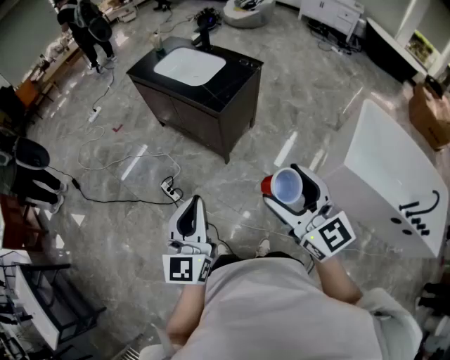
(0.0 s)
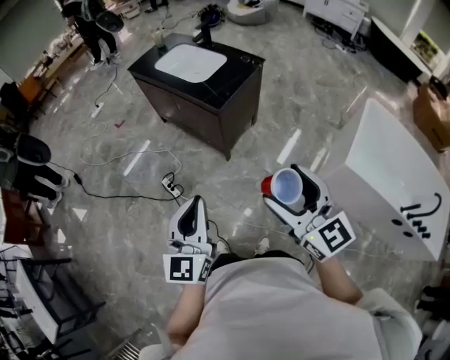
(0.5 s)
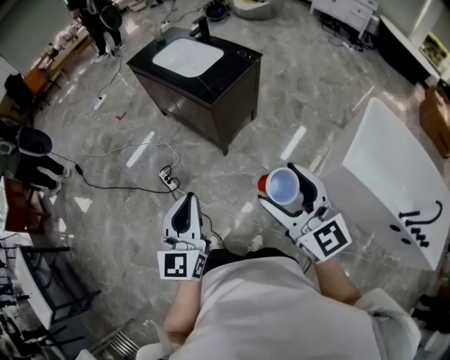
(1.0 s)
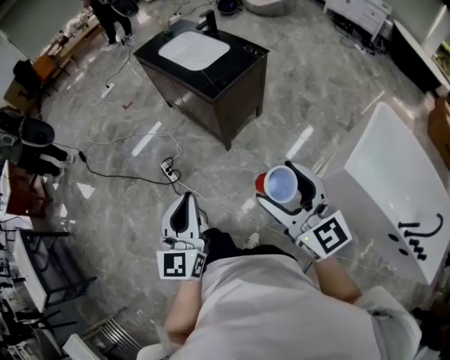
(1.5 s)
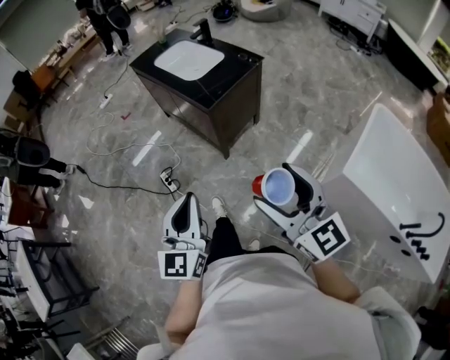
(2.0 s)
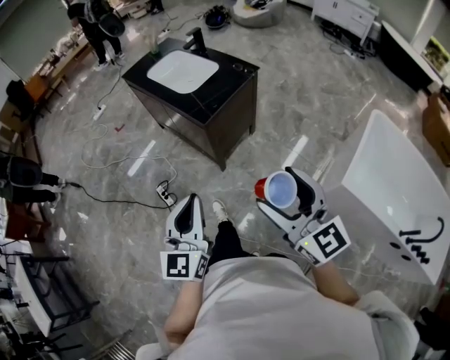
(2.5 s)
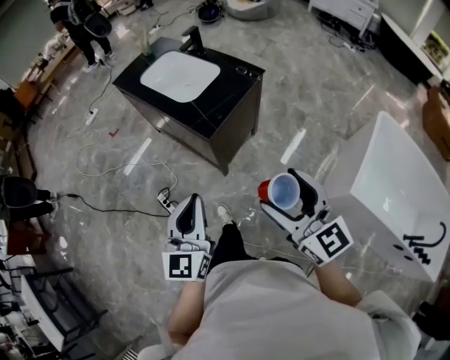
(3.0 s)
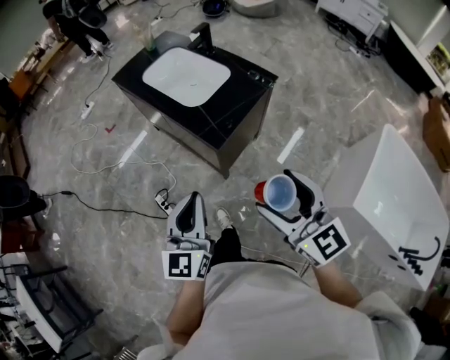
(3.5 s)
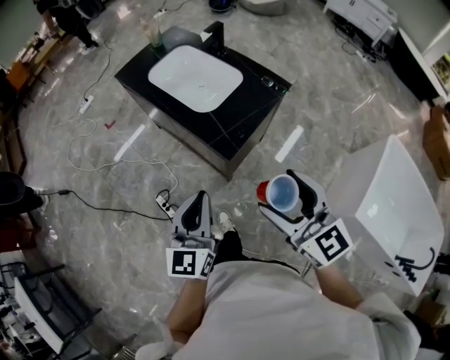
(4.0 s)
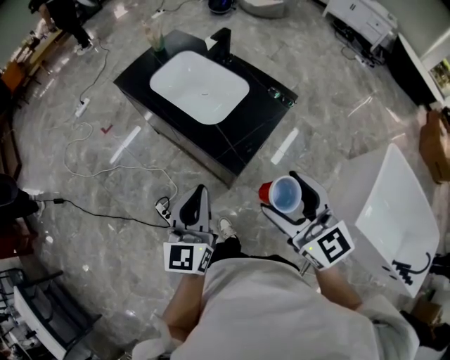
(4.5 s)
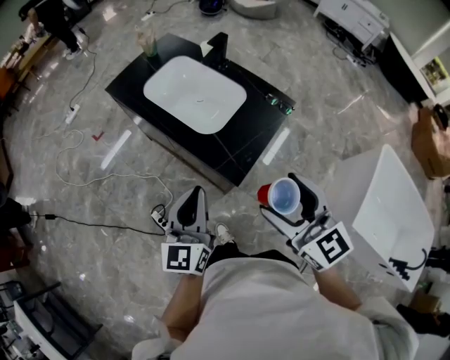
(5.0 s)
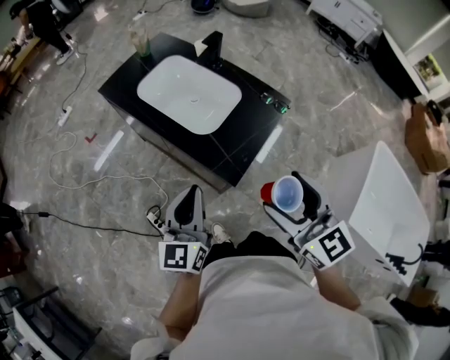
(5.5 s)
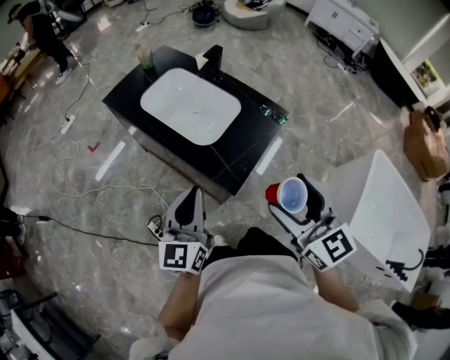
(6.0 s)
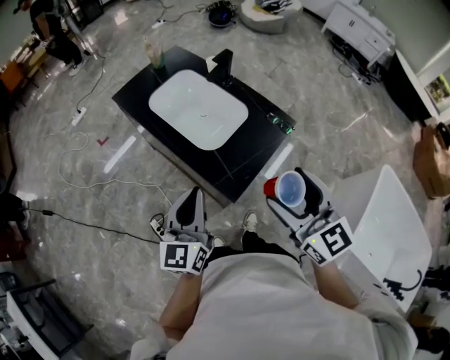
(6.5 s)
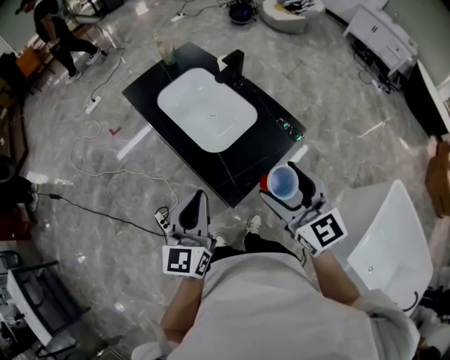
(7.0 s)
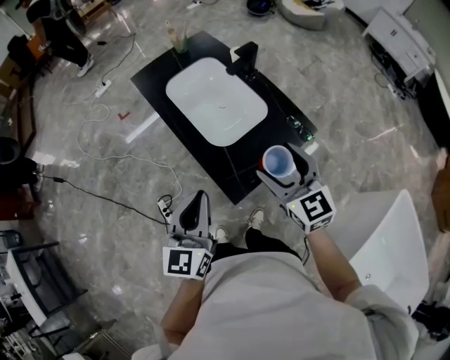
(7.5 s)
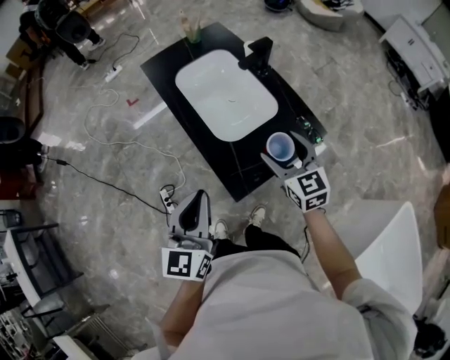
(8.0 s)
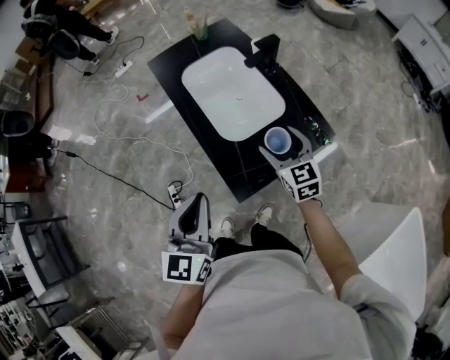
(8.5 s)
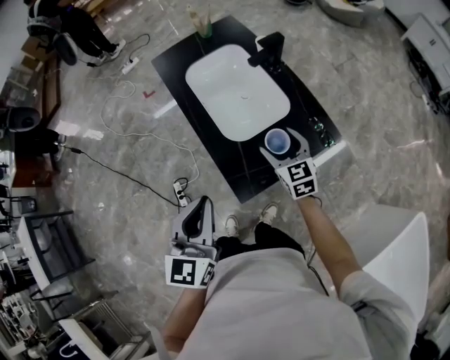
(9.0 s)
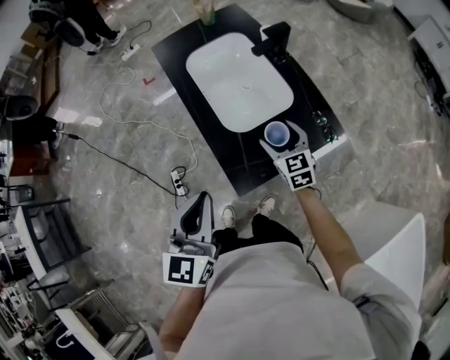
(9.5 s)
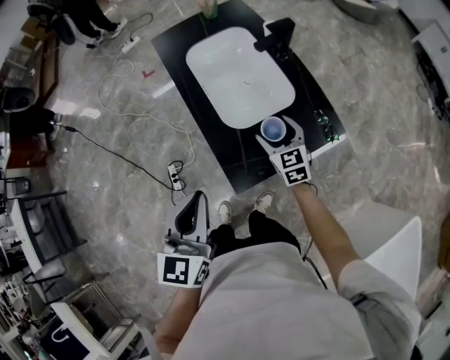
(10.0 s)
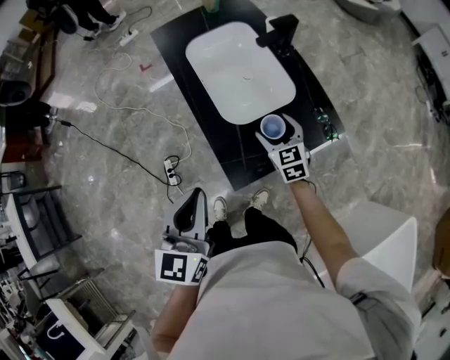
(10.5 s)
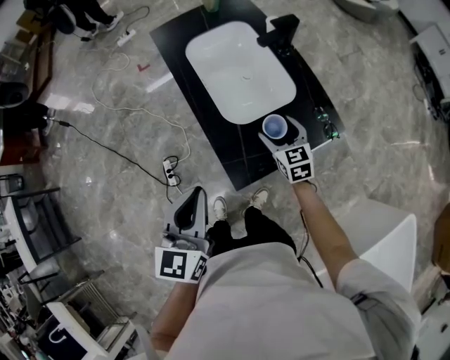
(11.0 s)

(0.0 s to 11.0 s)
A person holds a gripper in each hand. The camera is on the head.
0.0 s - 2.0 s: The grippers both shift to the right by approximately 10 cm.
2.0 s - 3.5 s: The two grippers go approximately 25 cm forward.
3.5 s - 5.5 s: The grippers both shift forward by about 20 cm.
5.5 s - 7.5 s: The right gripper is displaced forward by some 15 cm. The left gripper changes place by roughly 5 cm.
7.5 s - 9.0 s: The right gripper shifts about 20 cm downward and forward.
9.0 s - 11.0 s: The right gripper shifts some 5 cm downward.

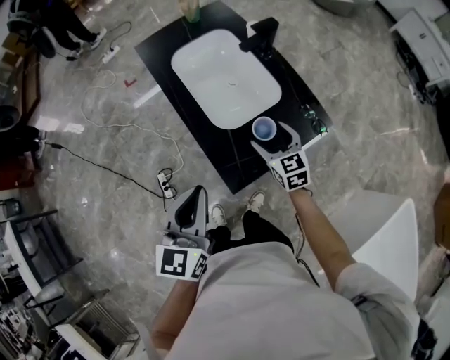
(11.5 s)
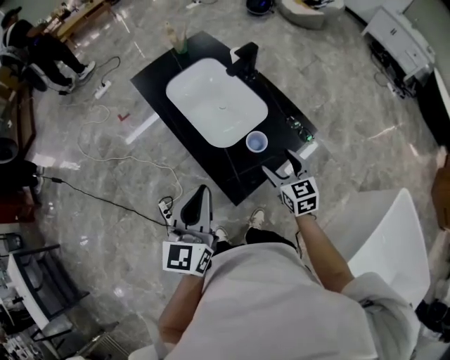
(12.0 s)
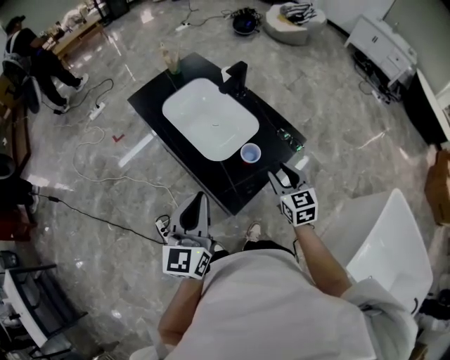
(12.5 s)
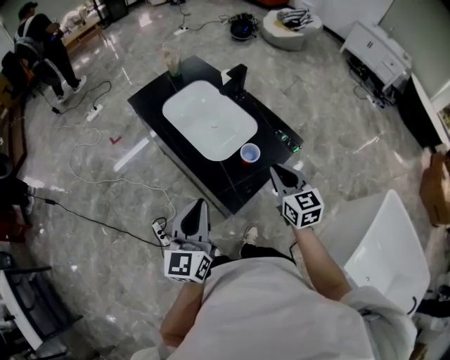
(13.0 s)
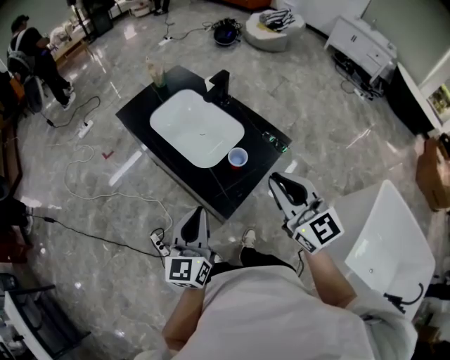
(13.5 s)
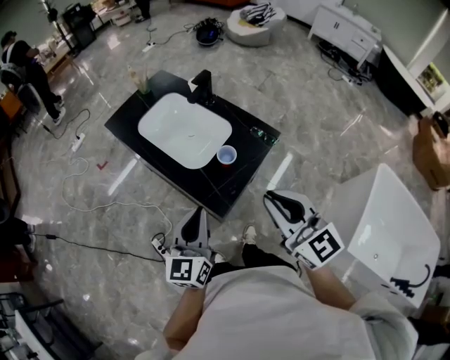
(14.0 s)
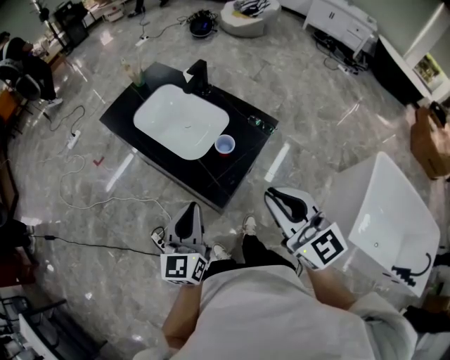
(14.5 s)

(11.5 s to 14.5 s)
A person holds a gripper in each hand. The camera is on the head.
11.5 s - 13.0 s: The right gripper travels upward and backward by roughly 15 cm, and closes.
13.0 s - 14.5 s: The right gripper moves upward and backward, roughly 20 cm.

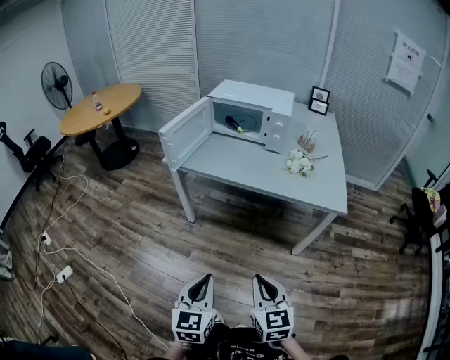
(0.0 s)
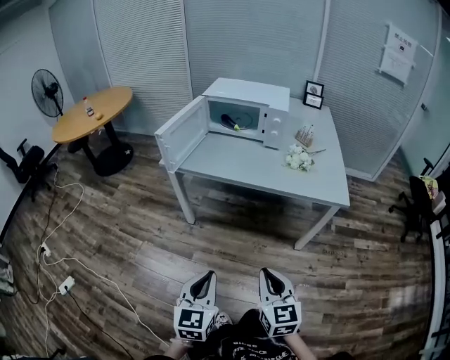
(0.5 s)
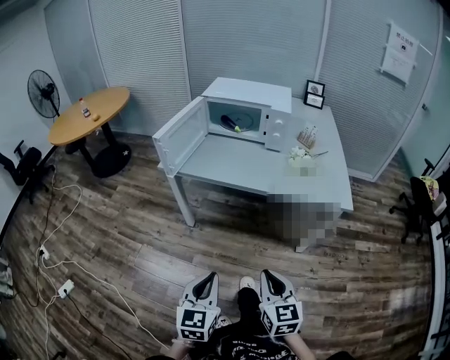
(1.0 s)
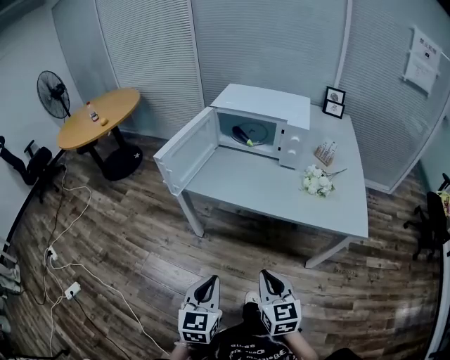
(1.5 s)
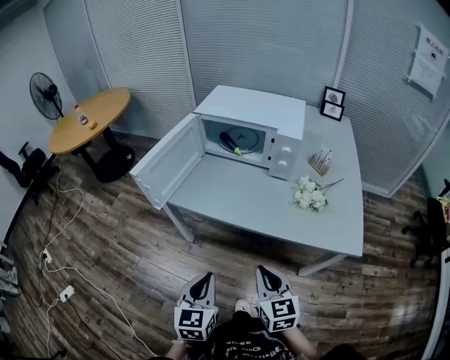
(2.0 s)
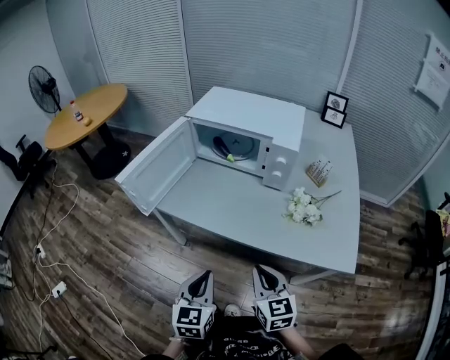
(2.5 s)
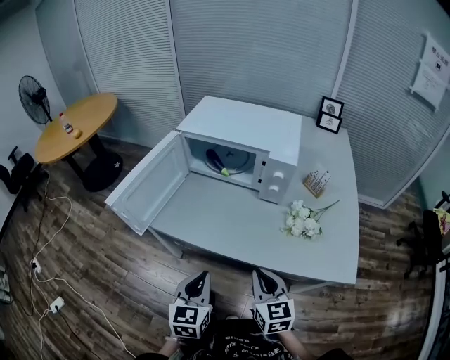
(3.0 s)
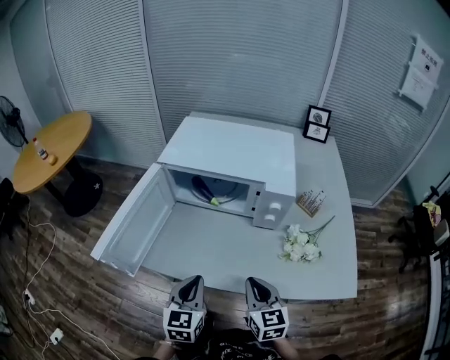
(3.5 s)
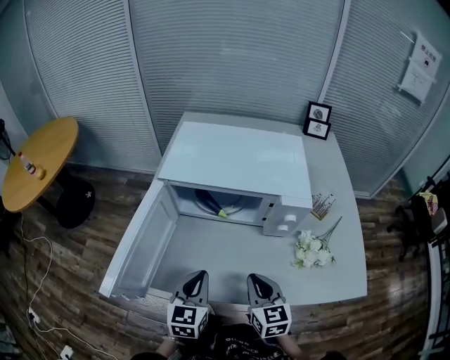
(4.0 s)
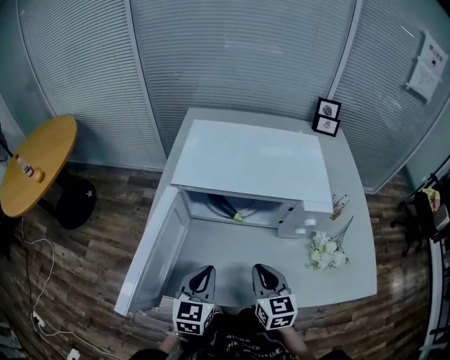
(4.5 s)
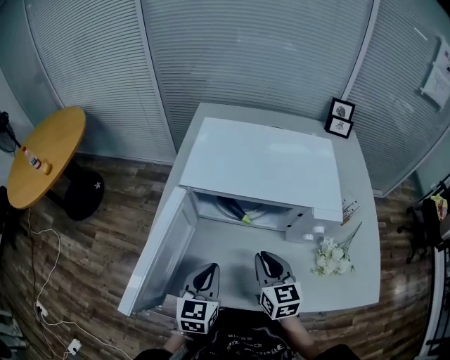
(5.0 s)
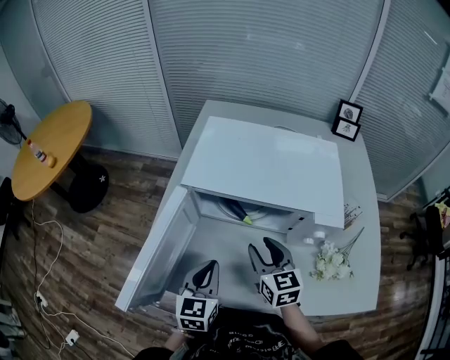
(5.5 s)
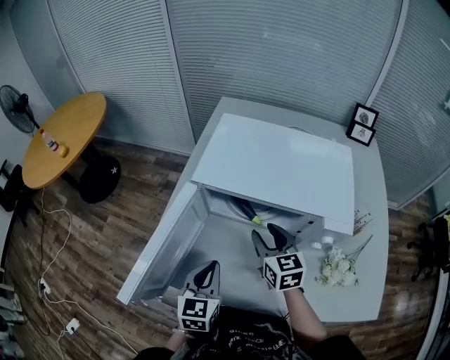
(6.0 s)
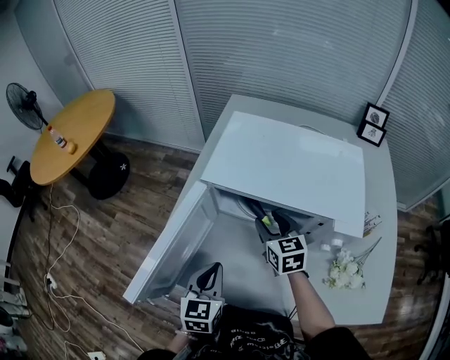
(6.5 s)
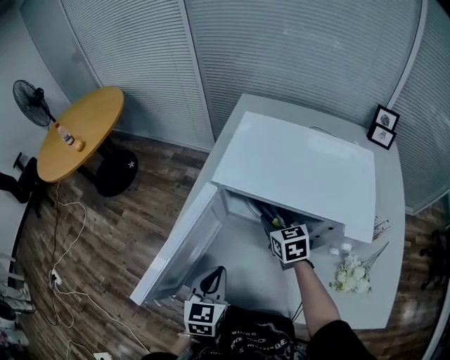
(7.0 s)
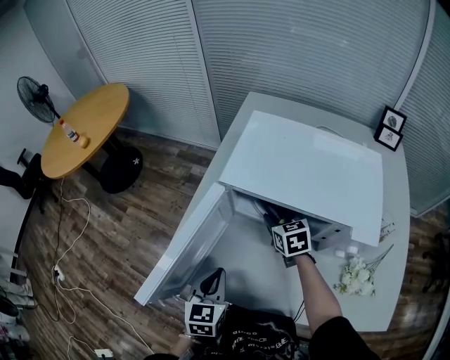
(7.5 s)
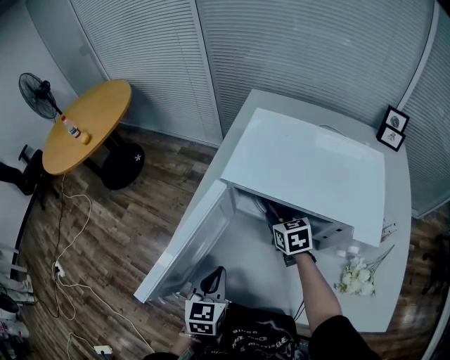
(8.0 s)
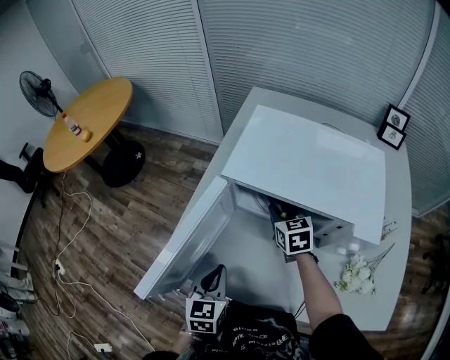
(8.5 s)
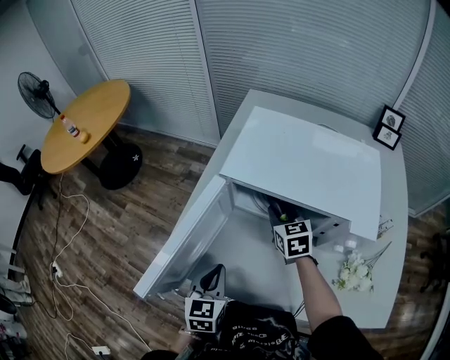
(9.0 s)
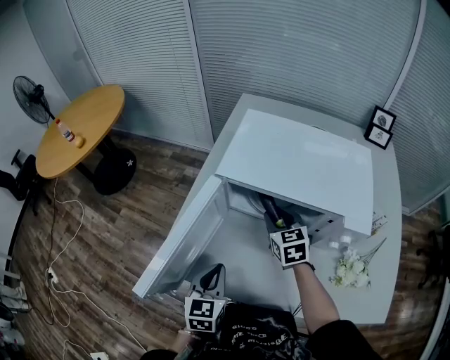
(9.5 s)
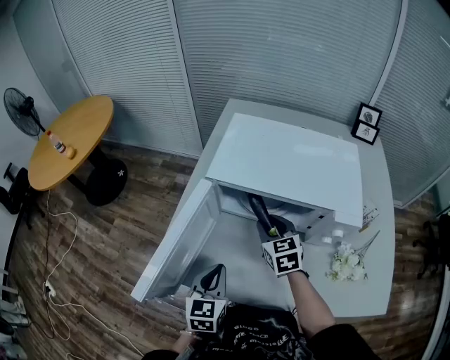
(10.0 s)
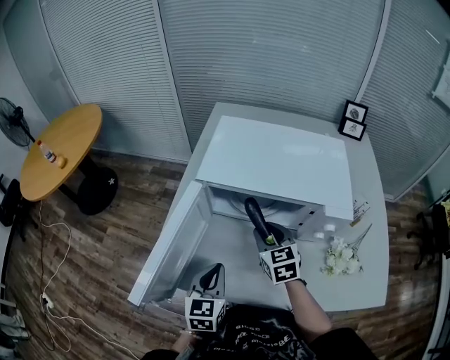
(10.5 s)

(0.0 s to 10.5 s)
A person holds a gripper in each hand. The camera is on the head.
0.0 s - 2.0 s: The grippers both shift forward by about 25 cm.
2.0 s - 4.0 s: Both grippers travel together forward, about 30 cm.
4.0 s - 6.5 s: The left gripper heads to the left and forward, covering approximately 10 cm; the right gripper goes some 25 cm forward, and opens.
6.5 s - 8.5 s: The right gripper moves some 5 cm.
8.5 s - 10.5 s: The right gripper shifts roughly 10 cm backward.

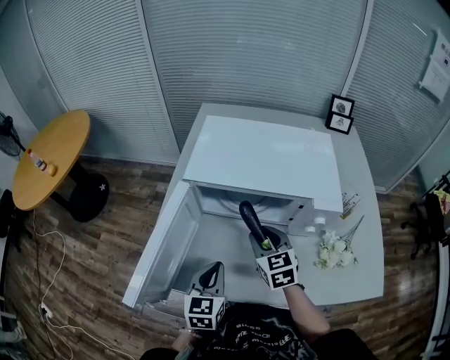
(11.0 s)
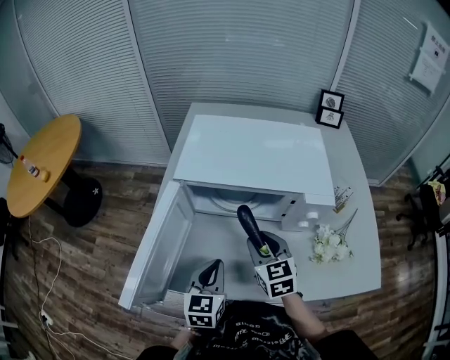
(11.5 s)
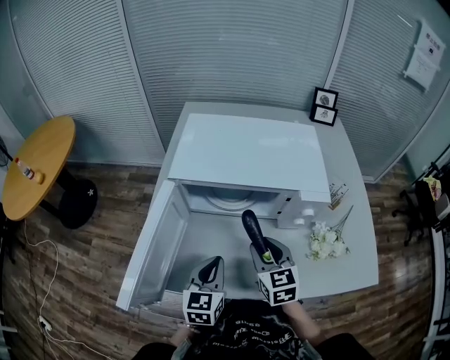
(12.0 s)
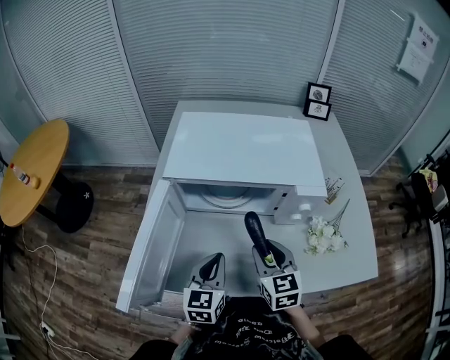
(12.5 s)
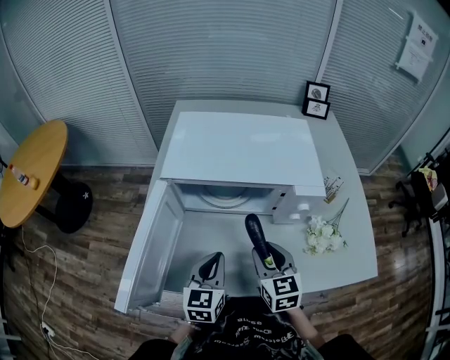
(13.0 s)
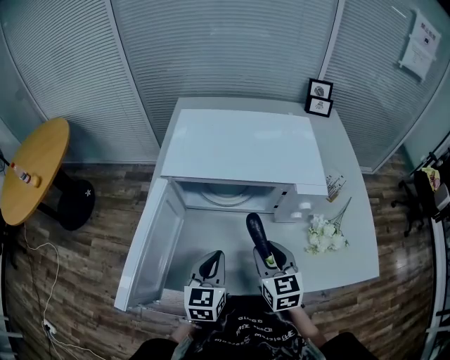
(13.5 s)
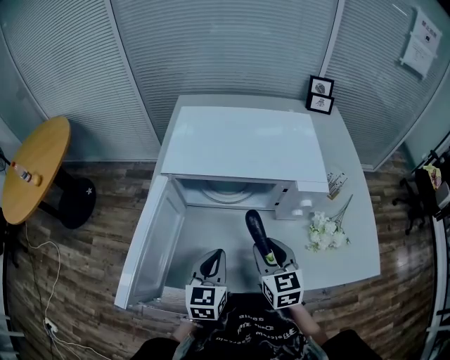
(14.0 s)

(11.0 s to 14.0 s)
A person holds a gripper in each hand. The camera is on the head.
11.0 s - 12.5 s: The right gripper travels backward by some 5 cm.
12.5 s - 14.0 s: Both grippers stay put.
